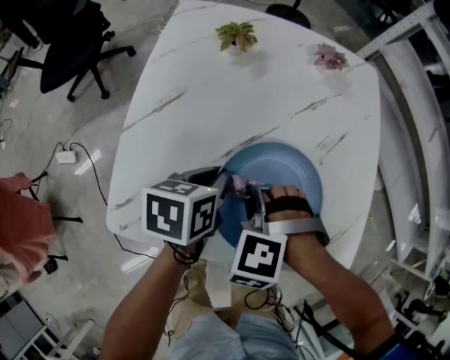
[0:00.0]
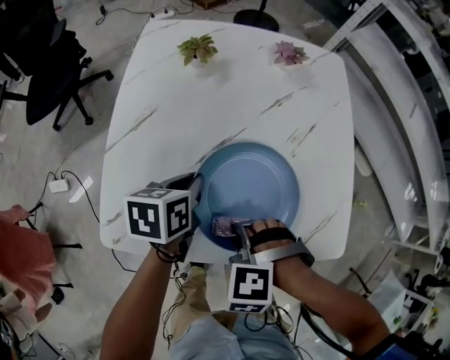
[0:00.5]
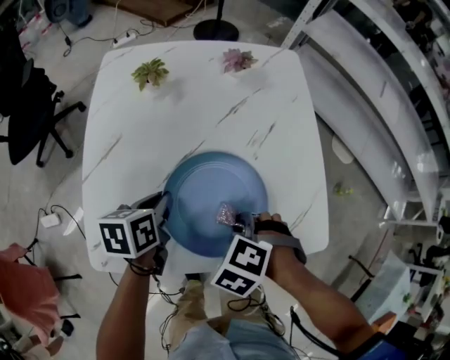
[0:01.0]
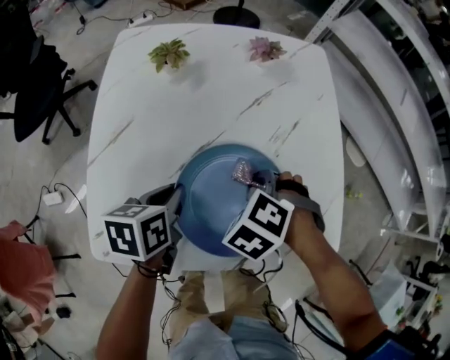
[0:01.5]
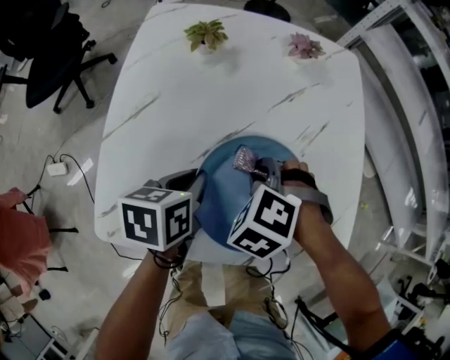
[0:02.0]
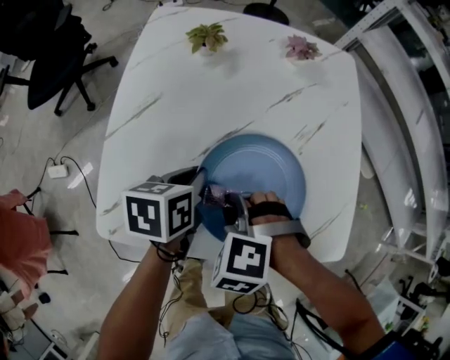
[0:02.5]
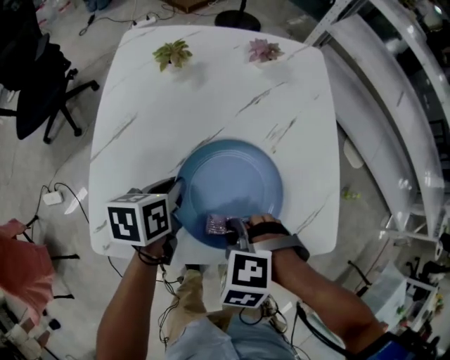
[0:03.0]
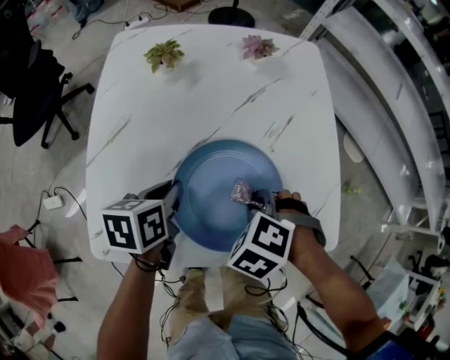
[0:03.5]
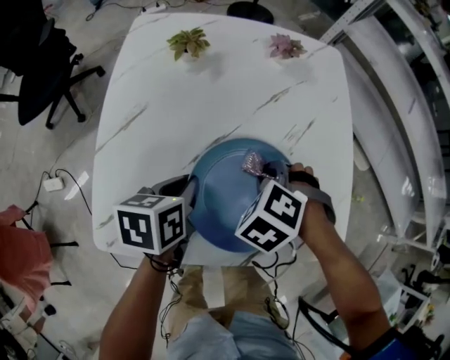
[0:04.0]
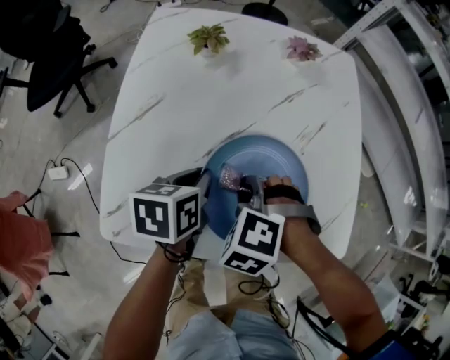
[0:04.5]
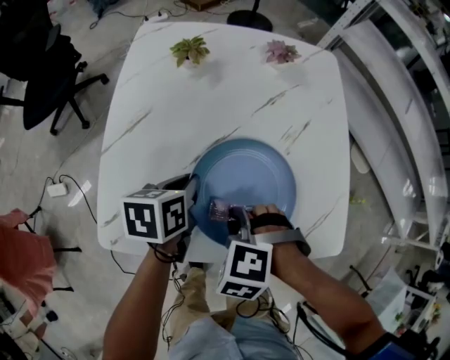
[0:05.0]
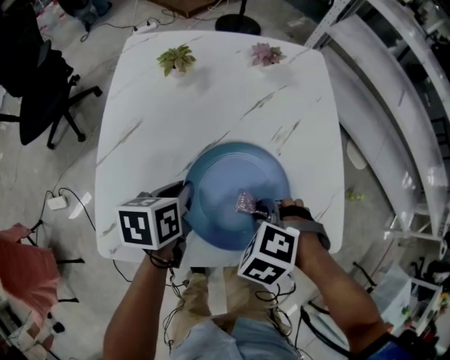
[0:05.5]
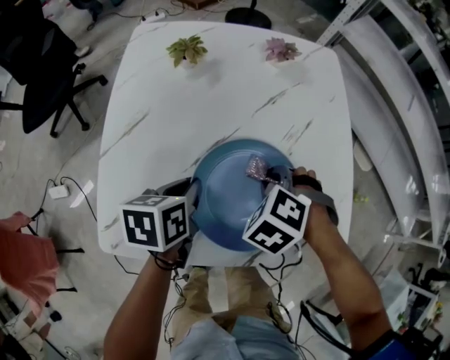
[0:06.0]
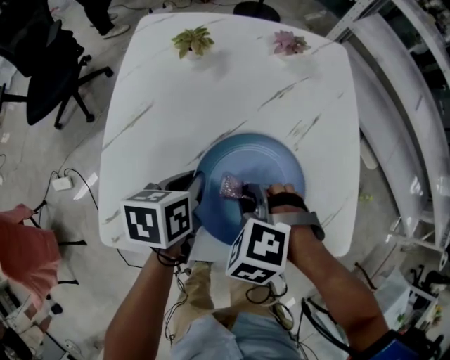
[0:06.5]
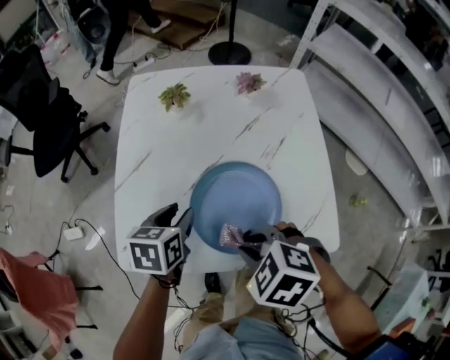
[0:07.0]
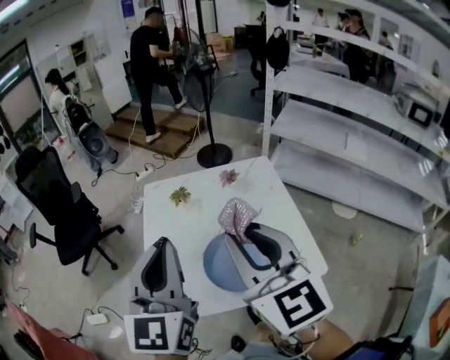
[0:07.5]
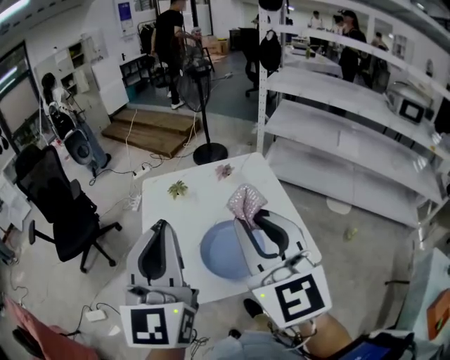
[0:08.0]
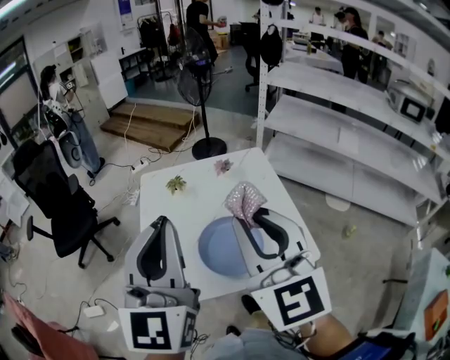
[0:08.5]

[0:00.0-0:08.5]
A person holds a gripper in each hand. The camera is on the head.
0:00.0 to 0:02.0: The right gripper changes place by about 10 cm.
0:06.5 to 0:08.5: The grippers both shift upward by approximately 40 cm. The left gripper points its fingers some 60 degrees further upward, and opens and closes again. Meanwhile the right gripper tilts its fingers approximately 80 degrees upward.

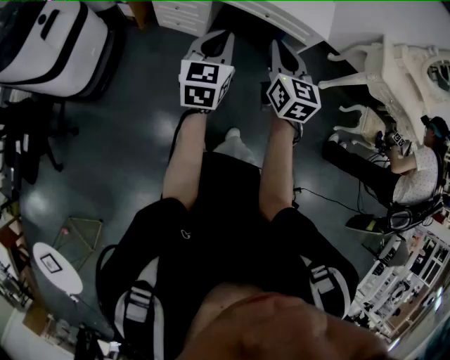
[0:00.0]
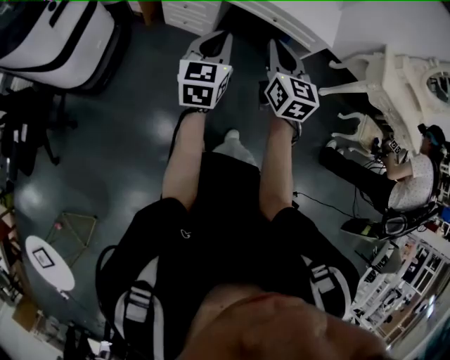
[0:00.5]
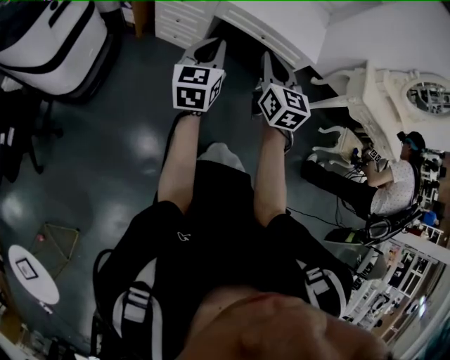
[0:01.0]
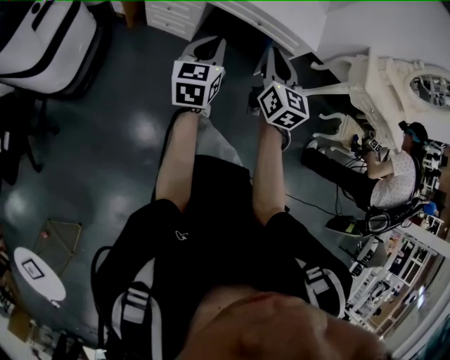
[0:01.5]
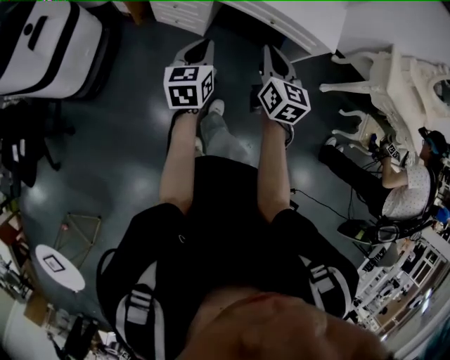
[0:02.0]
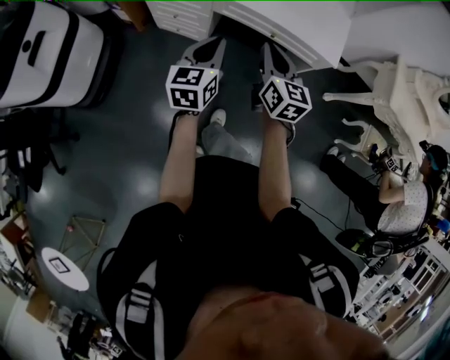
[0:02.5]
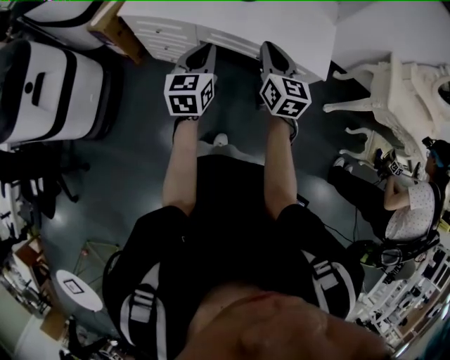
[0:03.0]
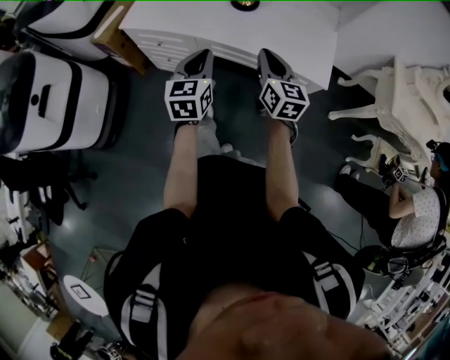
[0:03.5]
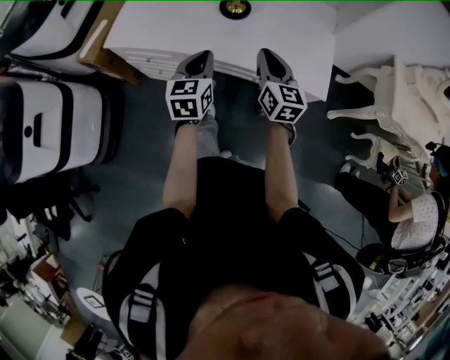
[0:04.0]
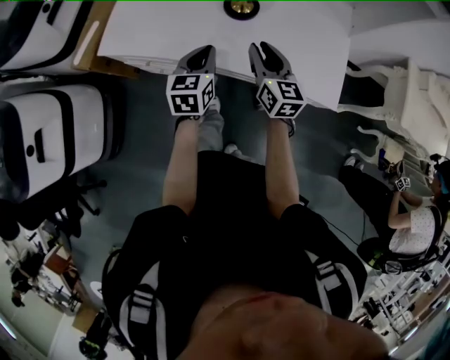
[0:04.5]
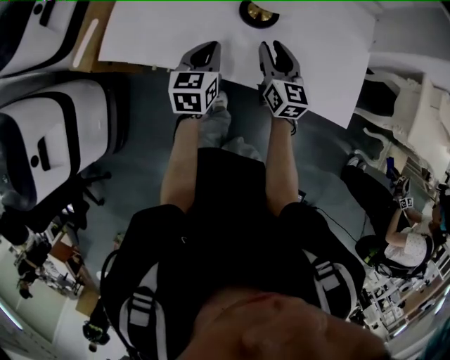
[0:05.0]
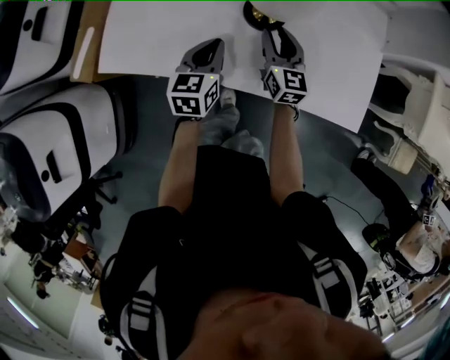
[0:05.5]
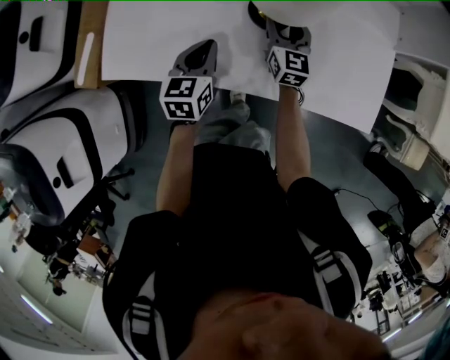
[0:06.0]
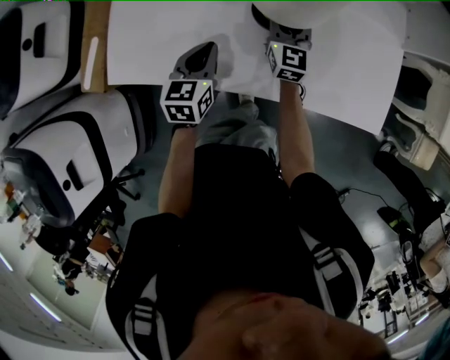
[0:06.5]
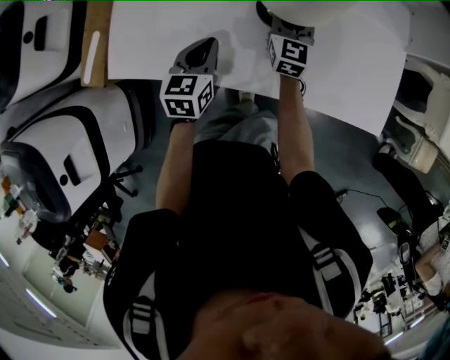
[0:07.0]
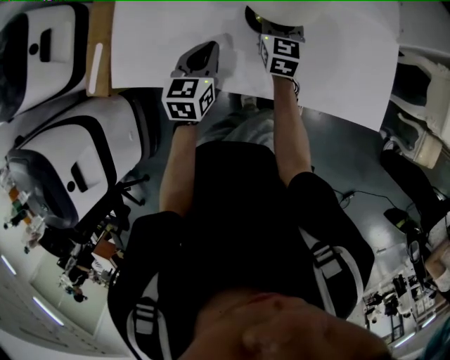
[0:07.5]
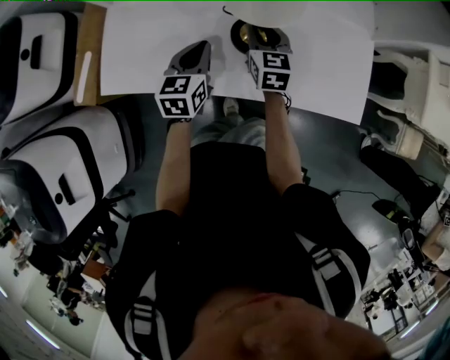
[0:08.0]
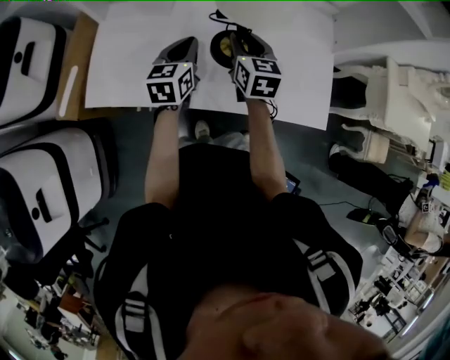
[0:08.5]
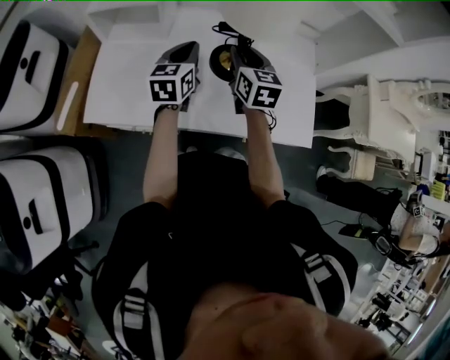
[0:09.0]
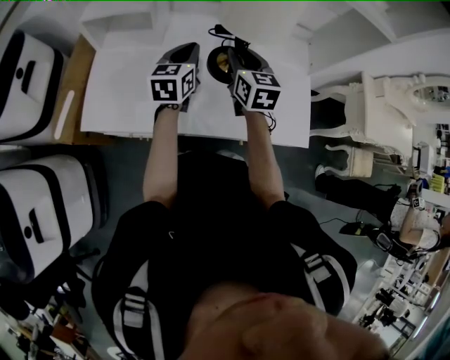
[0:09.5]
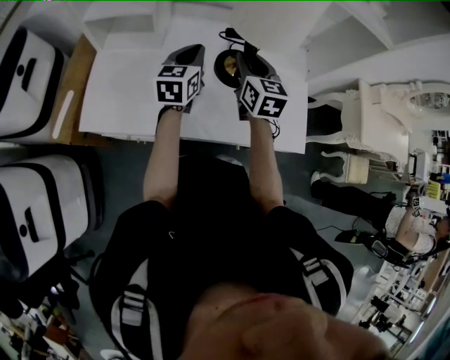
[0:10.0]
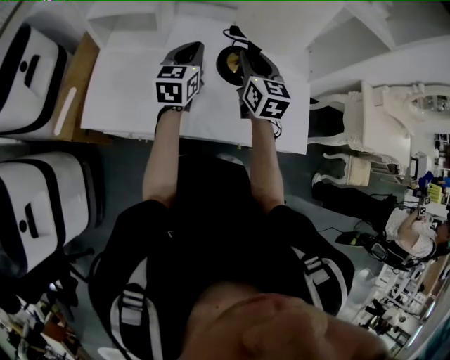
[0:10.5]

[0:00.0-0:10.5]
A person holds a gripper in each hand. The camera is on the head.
0:00.0 to 0:02.0: The left gripper is displaced downward and forward by some 10 cm; the right gripper goes some 10 cm forward and downward.
0:02.0 to 0:04.0: Both grippers move forward, roughly 30 cm.
0:04.0 to 0:06.5: The right gripper goes some 35 cm forward and downward, and opens its fingers. The left gripper is displaced forward, downward and to the left by about 25 cm.
0:06.5 to 0:08.5: The right gripper goes about 15 cm upward and backward, while the left gripper is displaced upward by approximately 10 cm.
0:08.5 to 0:10.5: Both grippers travel together upward, some 10 cm.

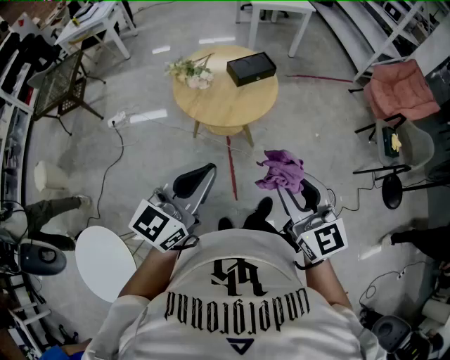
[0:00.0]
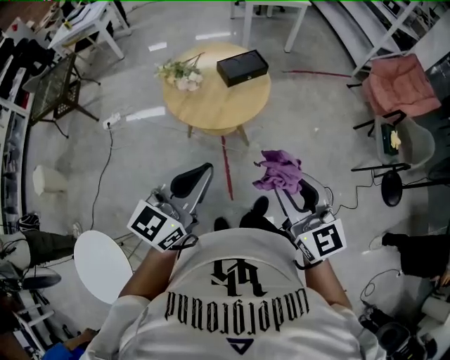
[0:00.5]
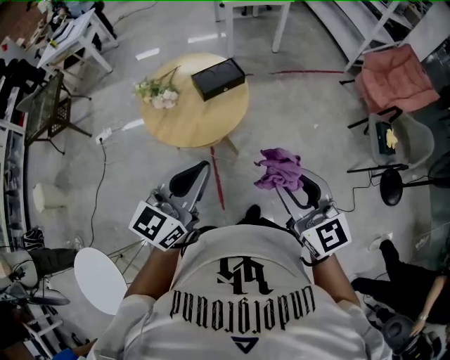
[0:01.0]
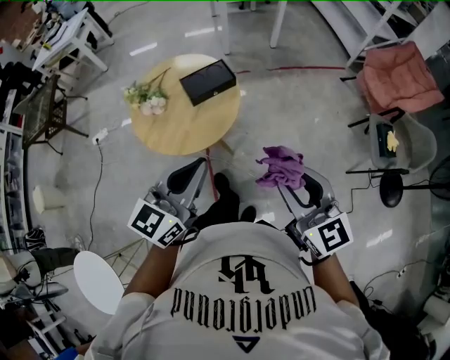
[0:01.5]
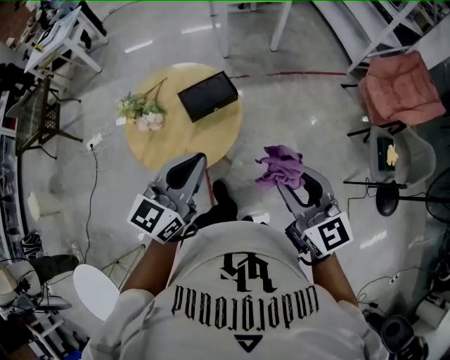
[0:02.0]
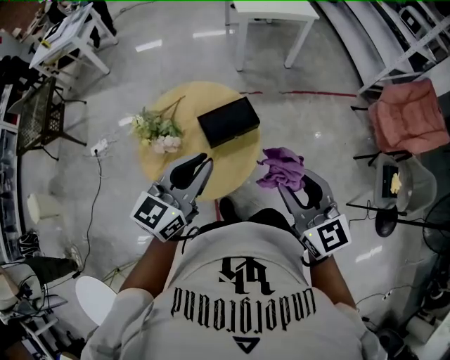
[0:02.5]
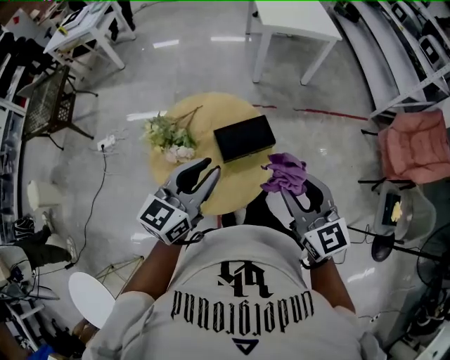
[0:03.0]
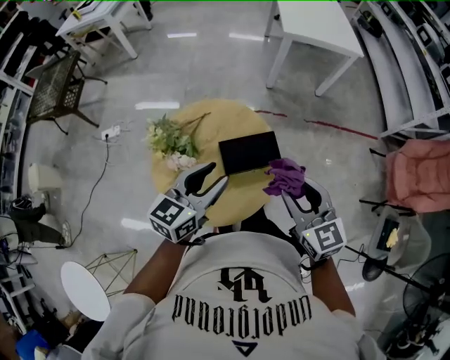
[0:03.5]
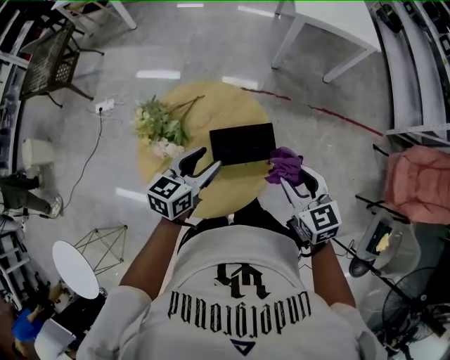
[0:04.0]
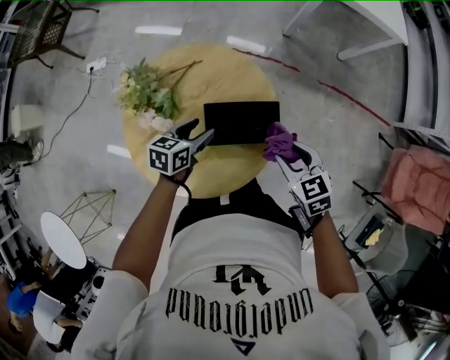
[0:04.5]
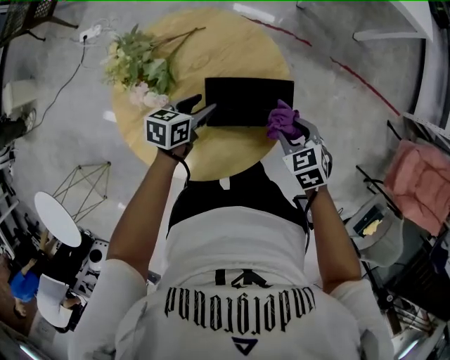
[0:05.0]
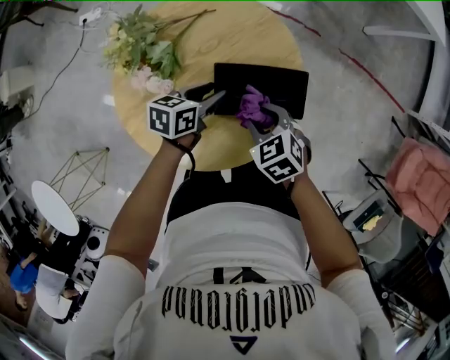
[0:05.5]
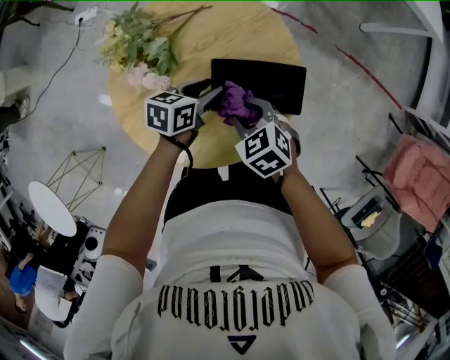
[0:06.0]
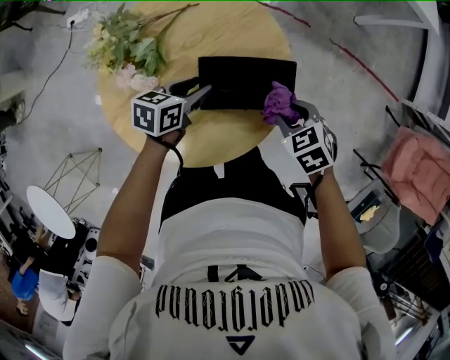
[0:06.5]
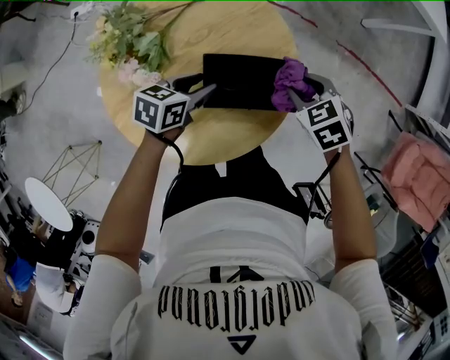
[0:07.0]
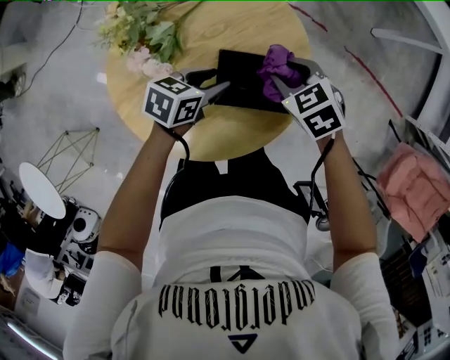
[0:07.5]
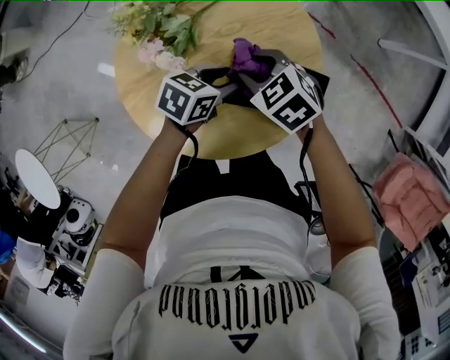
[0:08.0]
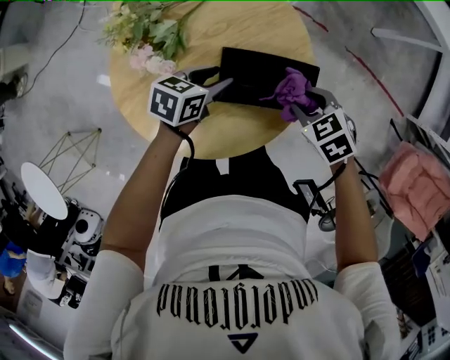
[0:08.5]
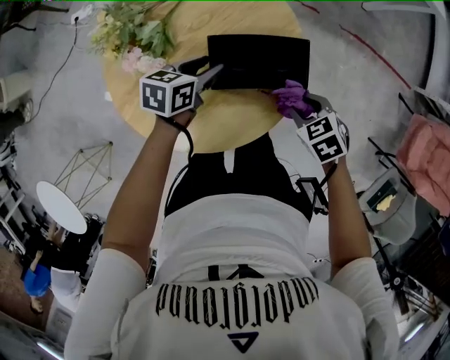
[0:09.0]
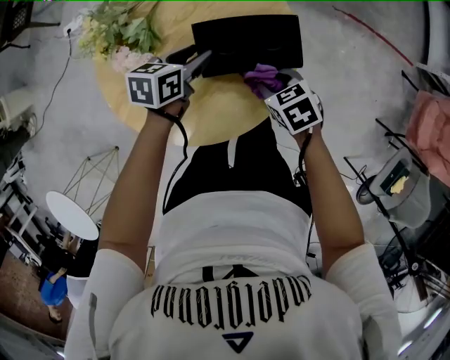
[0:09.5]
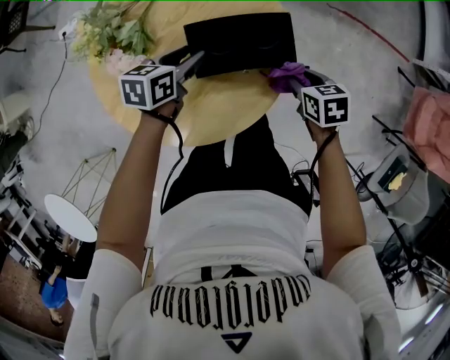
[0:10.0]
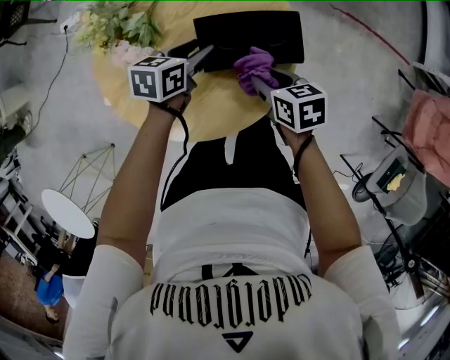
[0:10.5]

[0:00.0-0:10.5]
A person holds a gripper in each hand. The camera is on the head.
0:00.0 to 0:02.0: The two grippers go approximately 40 cm forward and to the right.
0:02.0 to 0:04.0: Both grippers travel together forward and downward, about 40 cm. The left gripper turns by approximately 30 degrees, and opens. The right gripper turns by roughly 30 degrees.
0:04.0 to 0:06.5: Both grippers travel together downward, roughly 25 cm. The left gripper swivels approximately 20 degrees. The right gripper tilts its fingers roughly 30 degrees downward.
0:08.5 to 0:10.5: The right gripper changes place by roughly 10 cm, and twists approximately 40 degrees clockwise, seen from behind.
